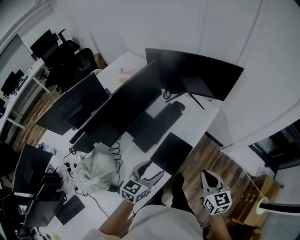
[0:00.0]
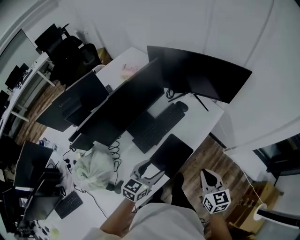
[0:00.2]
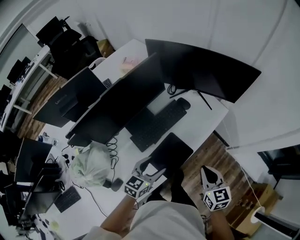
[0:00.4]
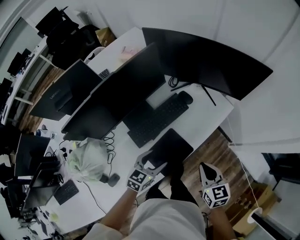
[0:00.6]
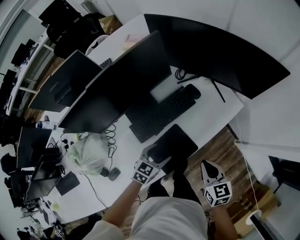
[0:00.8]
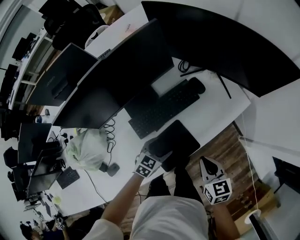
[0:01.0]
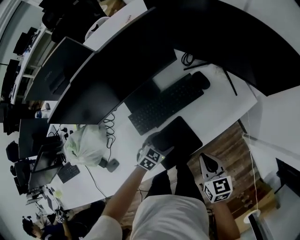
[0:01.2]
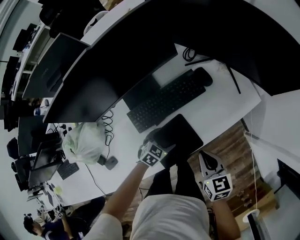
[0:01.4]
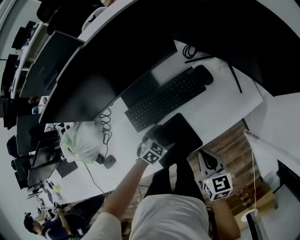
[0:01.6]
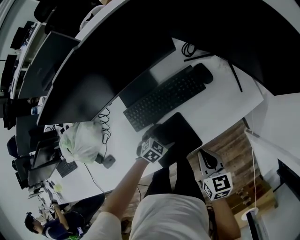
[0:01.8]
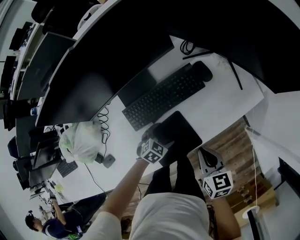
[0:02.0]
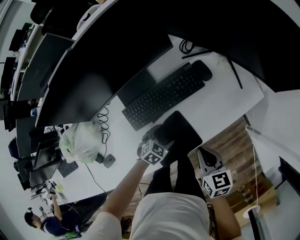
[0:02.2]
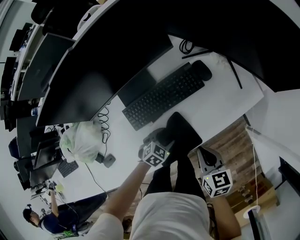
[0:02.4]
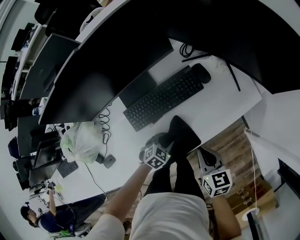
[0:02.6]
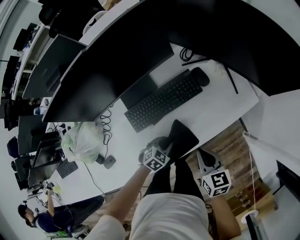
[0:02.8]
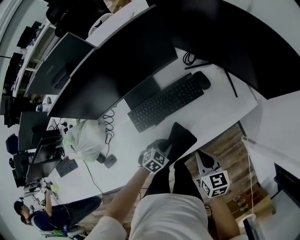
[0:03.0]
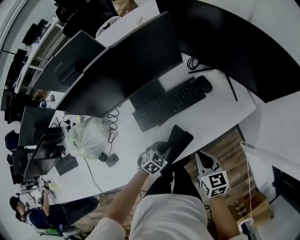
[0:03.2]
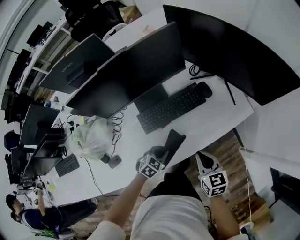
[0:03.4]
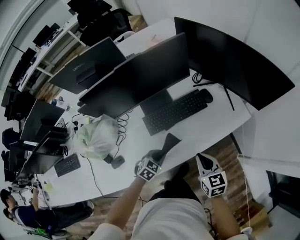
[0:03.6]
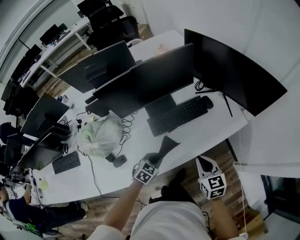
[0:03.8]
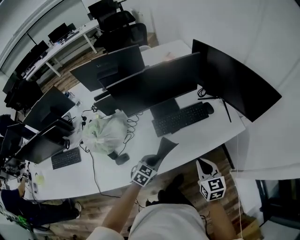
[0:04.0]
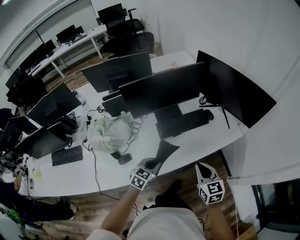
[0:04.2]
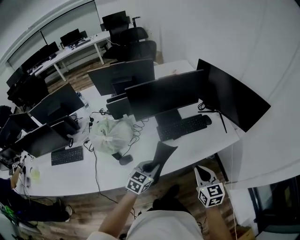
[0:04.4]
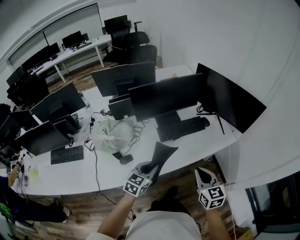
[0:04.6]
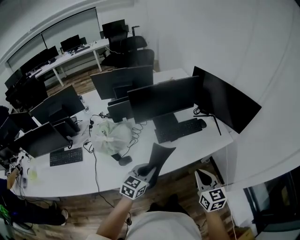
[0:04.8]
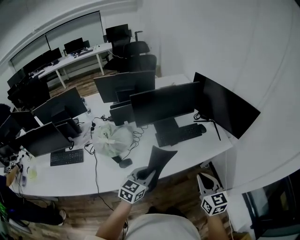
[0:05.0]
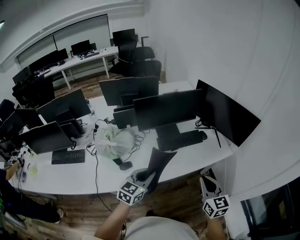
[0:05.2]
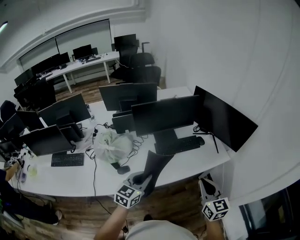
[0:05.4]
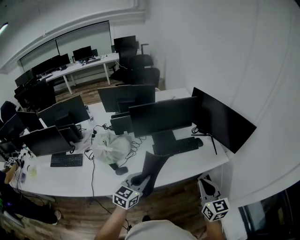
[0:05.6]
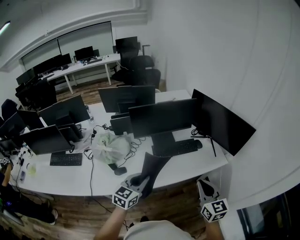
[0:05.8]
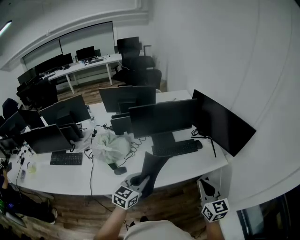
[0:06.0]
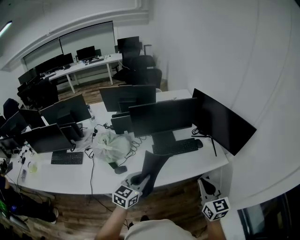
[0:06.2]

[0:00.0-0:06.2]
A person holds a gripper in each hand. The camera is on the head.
0:00.0 to 0:01.6: Both grippers travel together downward and forward, approximately 30 cm. The right gripper swivels about 30 degrees. Meanwhile the left gripper tips its fingers downward by roughly 40 degrees.
0:01.6 to 0:03.2: The left gripper goes about 5 cm upward, and closes its fingers.
0:03.2 to 0:04.6: The left gripper heads upward, backward and to the left, covering some 40 cm, and angles its fingers upward, by some 30 degrees, while the right gripper goes roughly 30 cm backward, upward and to the left, and changes its angle by about 20 degrees.
0:04.6 to 0:06.2: The left gripper goes some 10 cm upward; the right gripper heads upward and to the right, covering approximately 15 cm.

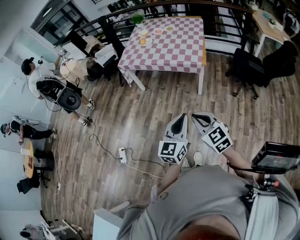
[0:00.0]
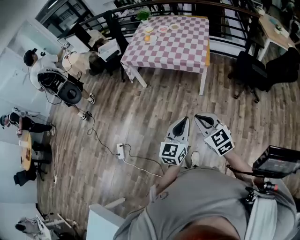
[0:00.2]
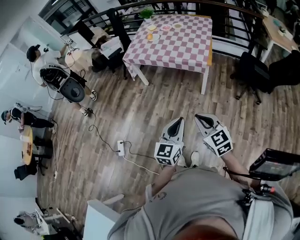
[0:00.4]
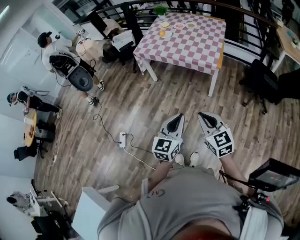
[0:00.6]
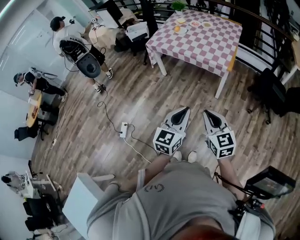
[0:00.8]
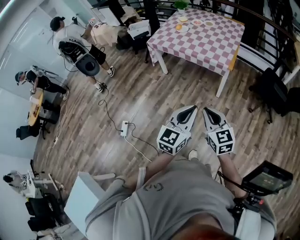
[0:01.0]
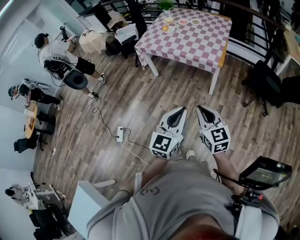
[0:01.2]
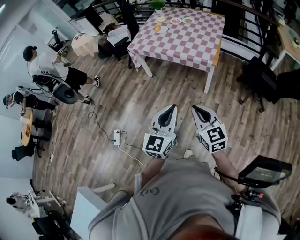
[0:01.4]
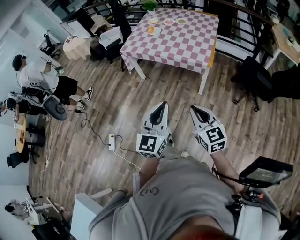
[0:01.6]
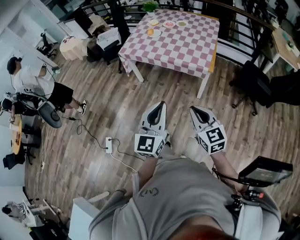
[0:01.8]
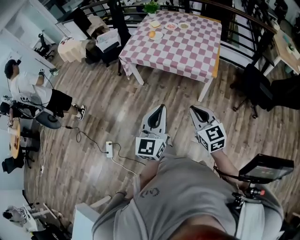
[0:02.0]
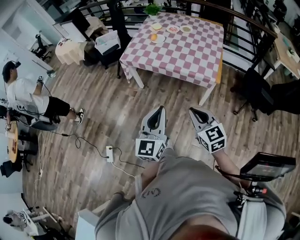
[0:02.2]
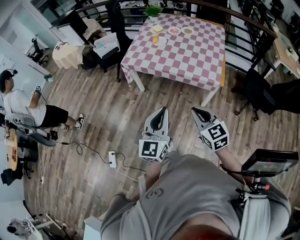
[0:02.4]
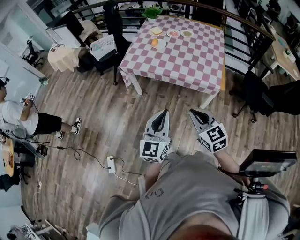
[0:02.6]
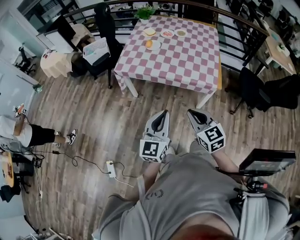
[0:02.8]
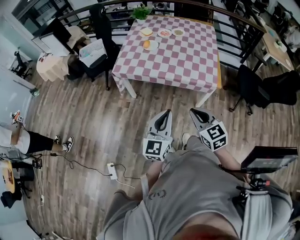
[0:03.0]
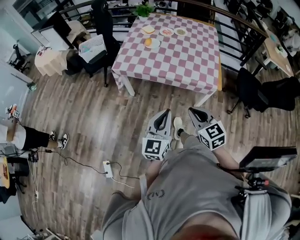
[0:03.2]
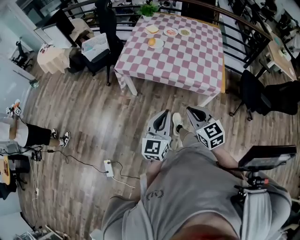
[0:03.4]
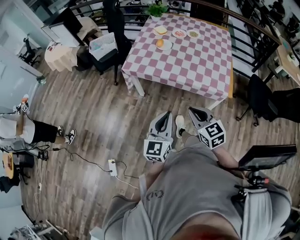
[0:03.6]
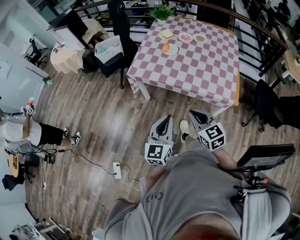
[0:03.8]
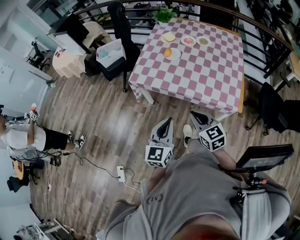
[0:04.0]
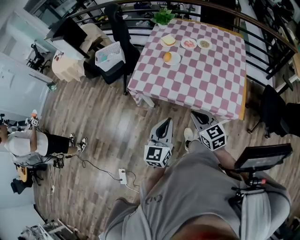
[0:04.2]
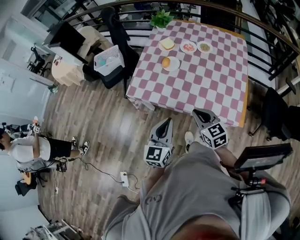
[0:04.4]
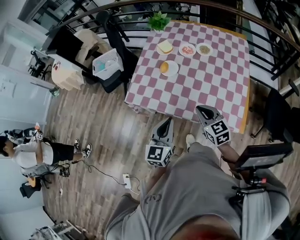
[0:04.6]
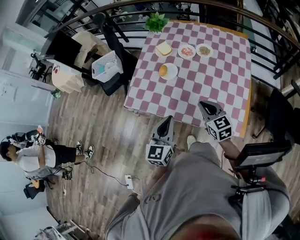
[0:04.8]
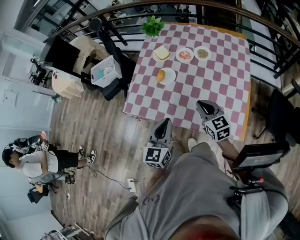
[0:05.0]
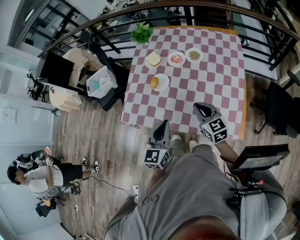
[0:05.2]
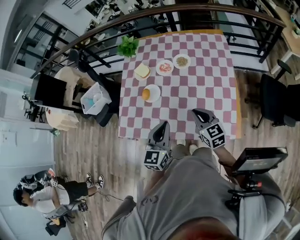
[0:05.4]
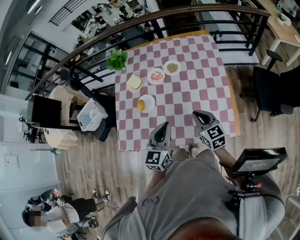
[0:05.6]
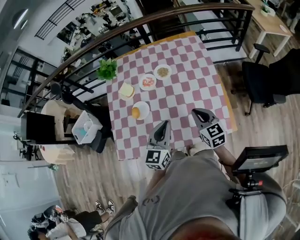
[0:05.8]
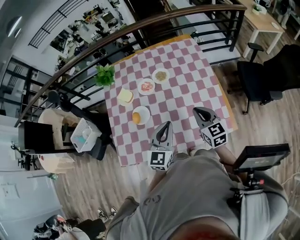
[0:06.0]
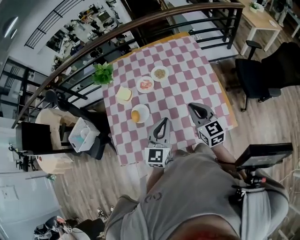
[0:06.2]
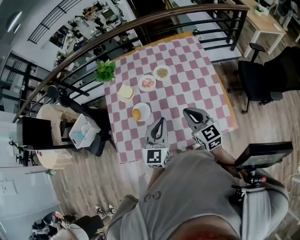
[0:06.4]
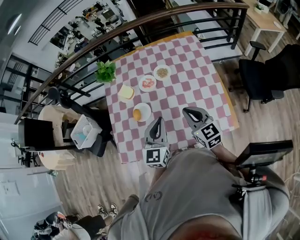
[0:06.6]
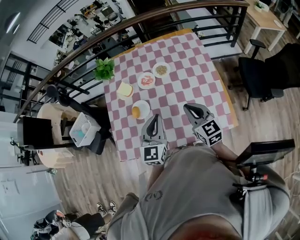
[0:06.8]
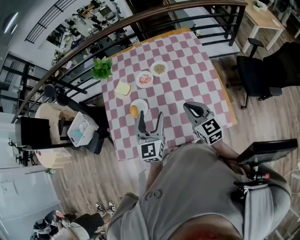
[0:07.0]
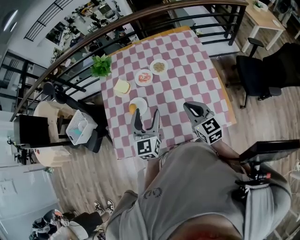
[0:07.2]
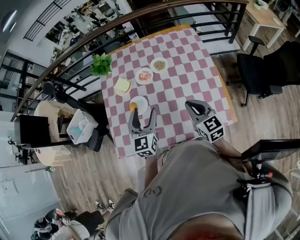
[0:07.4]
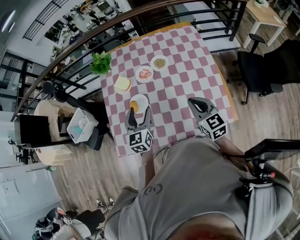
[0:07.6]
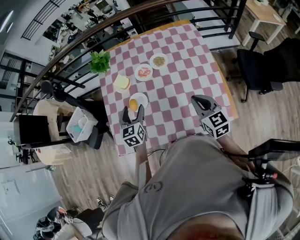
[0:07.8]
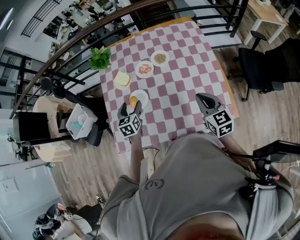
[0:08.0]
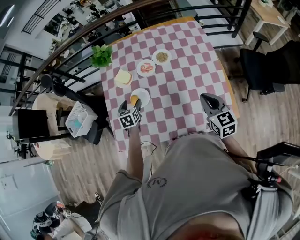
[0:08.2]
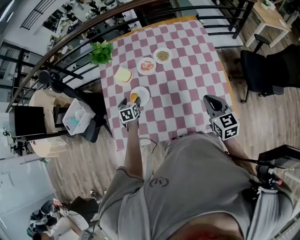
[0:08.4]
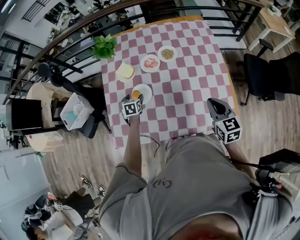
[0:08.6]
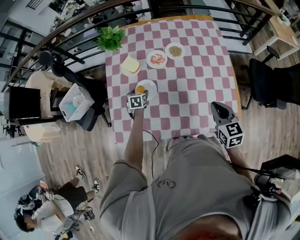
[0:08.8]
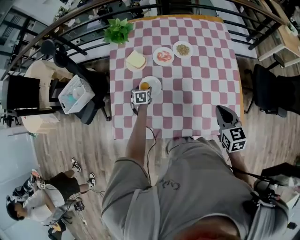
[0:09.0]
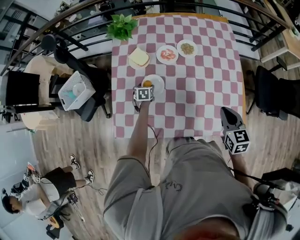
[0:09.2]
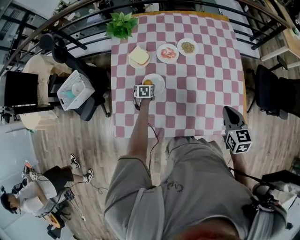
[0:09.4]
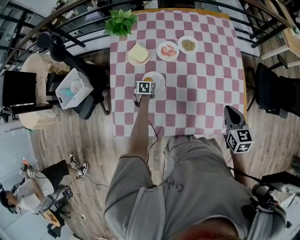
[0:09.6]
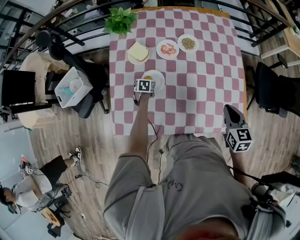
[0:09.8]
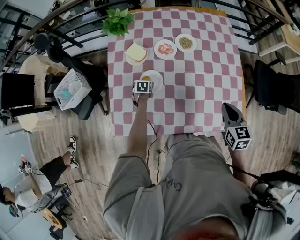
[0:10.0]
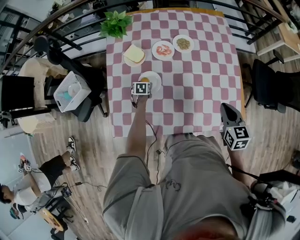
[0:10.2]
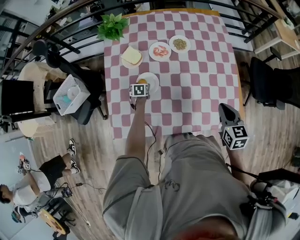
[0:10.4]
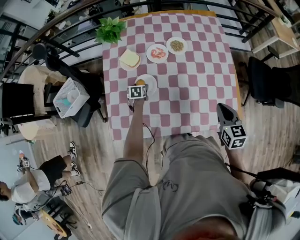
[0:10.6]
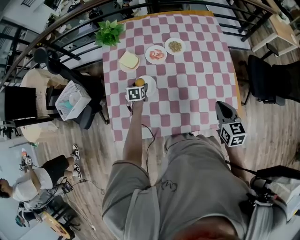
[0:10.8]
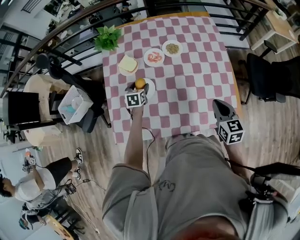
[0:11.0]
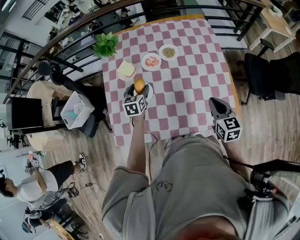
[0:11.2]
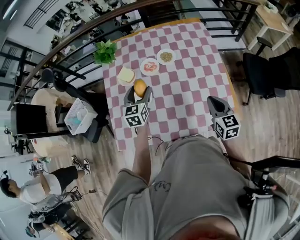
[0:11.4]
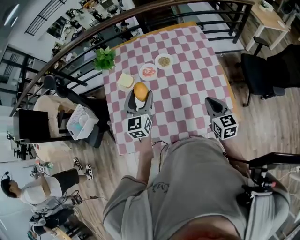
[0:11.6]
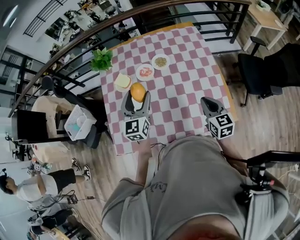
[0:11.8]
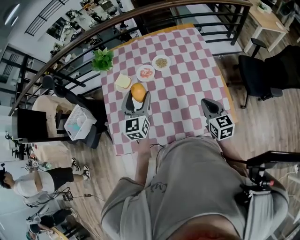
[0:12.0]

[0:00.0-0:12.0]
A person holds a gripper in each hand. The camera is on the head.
0:00.0 to 0:01.6: The left gripper travels forward by about 10 cm, while the right gripper travels forward and to the right by roughly 10 cm.
0:01.6 to 0:03.0: The two grippers go approximately 30 cm forward and to the left.
0:03.0 to 0:04.4: The two grippers go some 30 cm forward.
0:04.4 to 0:06.0: The right gripper changes place by some 25 cm, and rotates about 40 degrees. Meanwhile the left gripper shifts by approximately 30 cm, and turns by about 30 degrees.
0:06.0 to 0:07.6: The left gripper is displaced to the left and forward by some 15 cm, changes its angle by approximately 20 degrees, and opens its fingers.
0:07.6 to 0:09.0: The left gripper shifts roughly 35 cm downward and to the left, and points its fingers approximately 40 degrees further downward.
0:09.0 to 0:10.4: The left gripper is displaced downward by approximately 5 cm.
0:10.4 to 0:12.0: The left gripper goes approximately 40 cm upward, and tips its fingers upward by some 60 degrees.

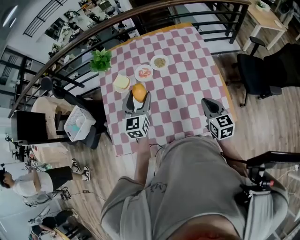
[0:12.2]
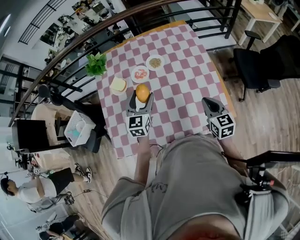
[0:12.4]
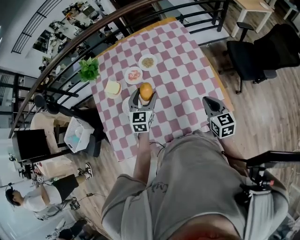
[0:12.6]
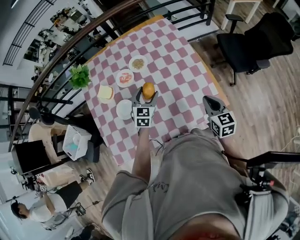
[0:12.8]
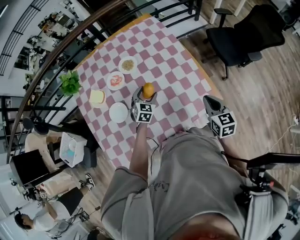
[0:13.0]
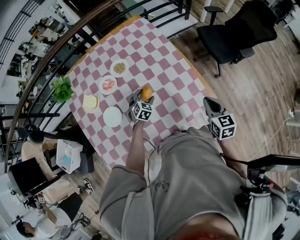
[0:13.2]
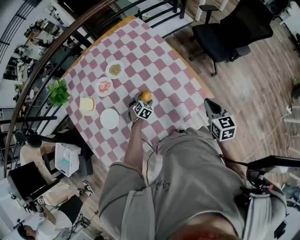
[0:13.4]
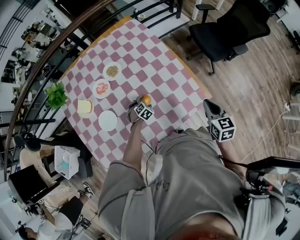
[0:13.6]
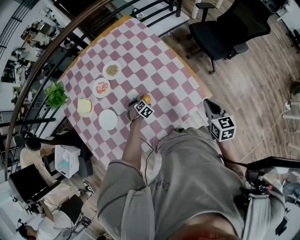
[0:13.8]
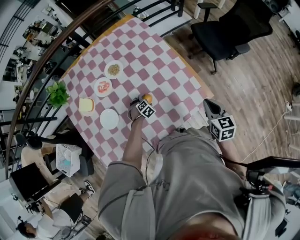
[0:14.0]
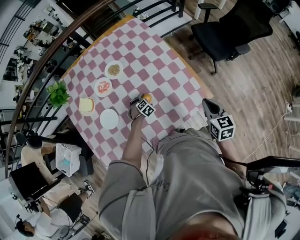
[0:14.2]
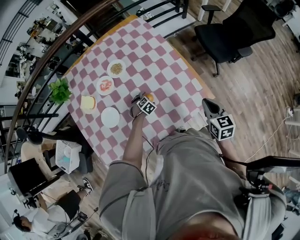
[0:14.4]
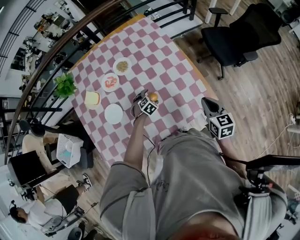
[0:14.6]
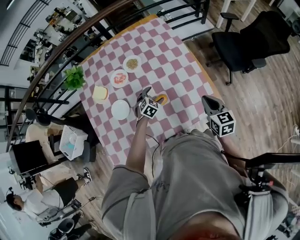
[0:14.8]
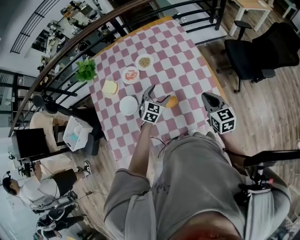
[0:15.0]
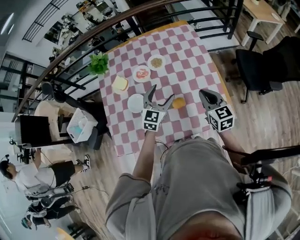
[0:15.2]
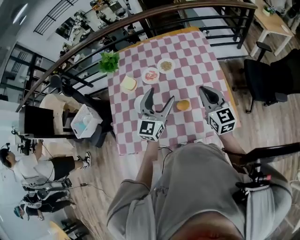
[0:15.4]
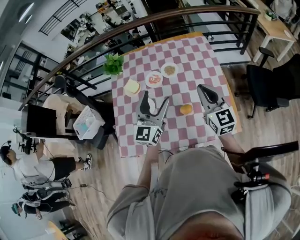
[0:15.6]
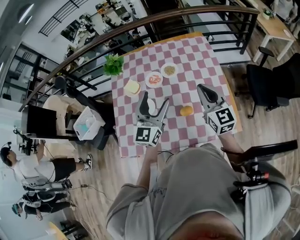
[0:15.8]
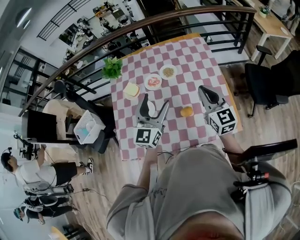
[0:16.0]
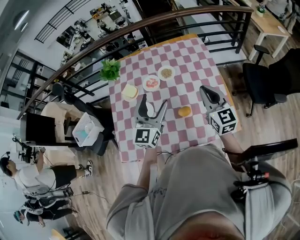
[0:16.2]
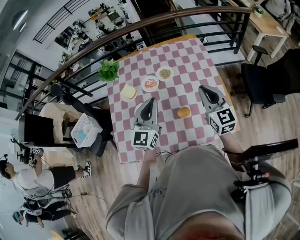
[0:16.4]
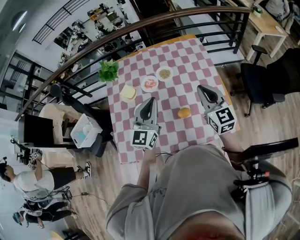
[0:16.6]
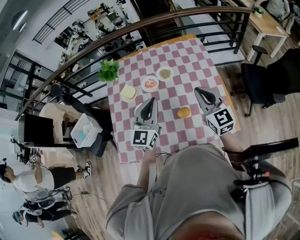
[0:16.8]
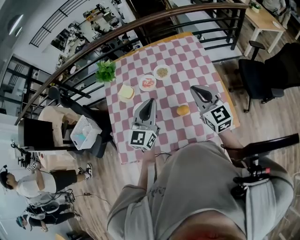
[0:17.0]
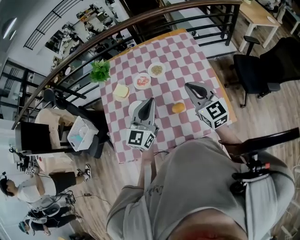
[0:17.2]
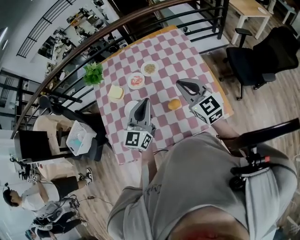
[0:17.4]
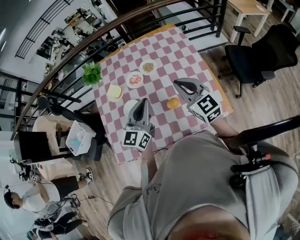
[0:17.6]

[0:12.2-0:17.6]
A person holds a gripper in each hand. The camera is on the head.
0:12.2 to 0:13.6: The left gripper travels downward by some 40 cm, and angles its fingers downward, by about 50 degrees. Meanwhile the right gripper moves approximately 20 cm, and rotates about 30 degrees.
0:13.6 to 0:15.0: The right gripper moves to the left, some 10 cm, and turns by about 20 degrees. Meanwhile the left gripper is displaced upward by approximately 25 cm, and points its fingers some 30 degrees further upward.
0:15.0 to 0:16.2: The left gripper goes roughly 25 cm upward and to the left, and tips its fingers upward by about 40 degrees, while the right gripper goes about 15 cm upward, to the left and forward, and swivels approximately 20 degrees.
0:16.2 to 0:17.6: The right gripper changes place by roughly 5 cm. The left gripper closes up.
